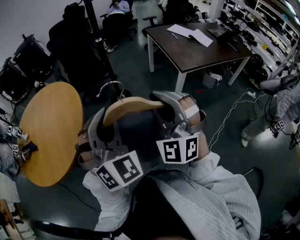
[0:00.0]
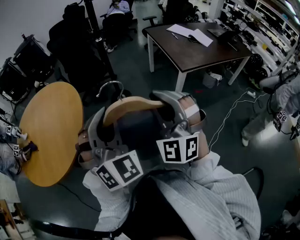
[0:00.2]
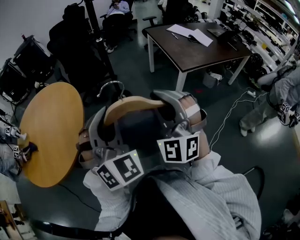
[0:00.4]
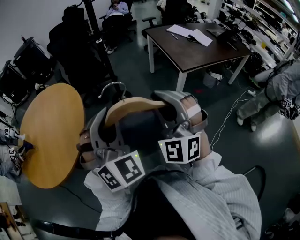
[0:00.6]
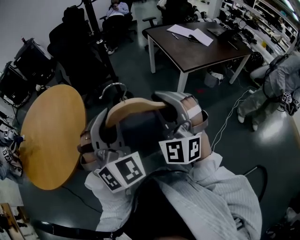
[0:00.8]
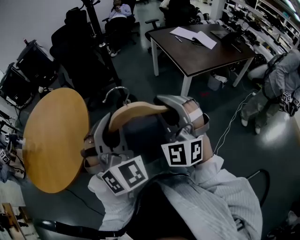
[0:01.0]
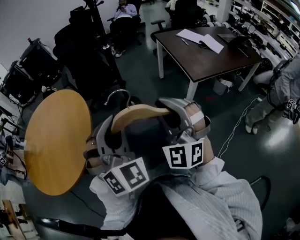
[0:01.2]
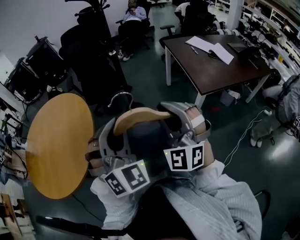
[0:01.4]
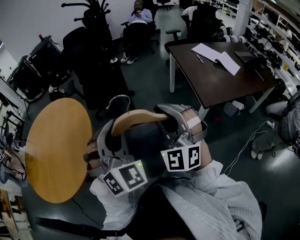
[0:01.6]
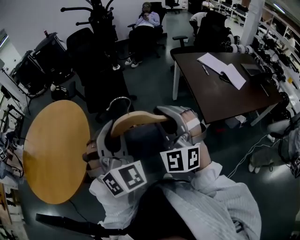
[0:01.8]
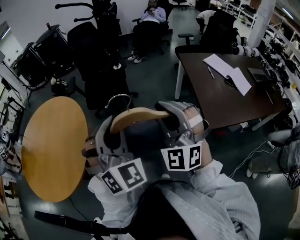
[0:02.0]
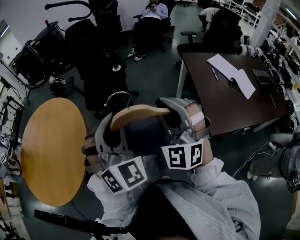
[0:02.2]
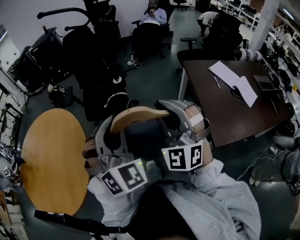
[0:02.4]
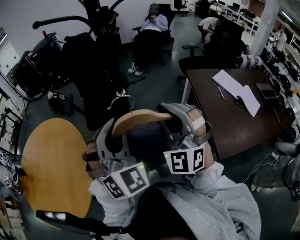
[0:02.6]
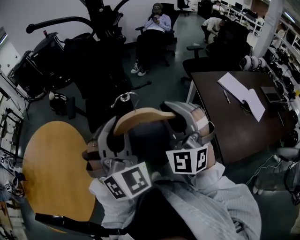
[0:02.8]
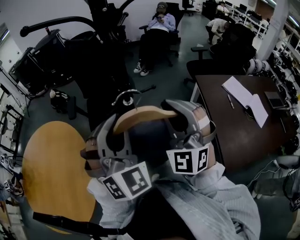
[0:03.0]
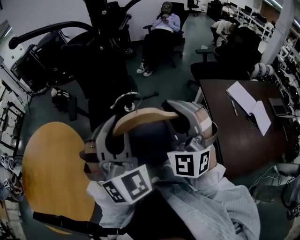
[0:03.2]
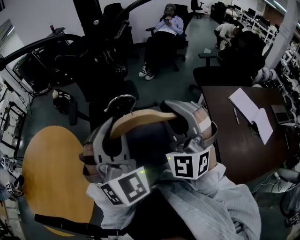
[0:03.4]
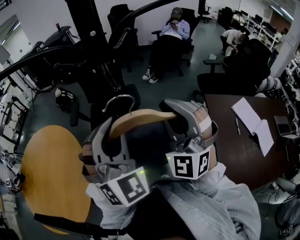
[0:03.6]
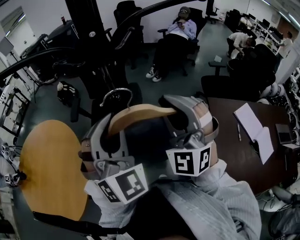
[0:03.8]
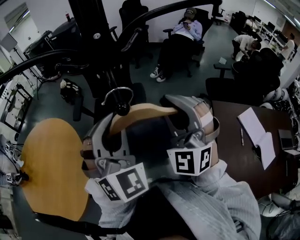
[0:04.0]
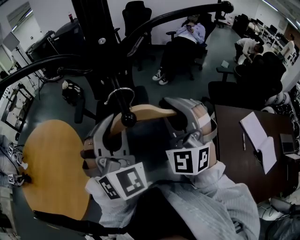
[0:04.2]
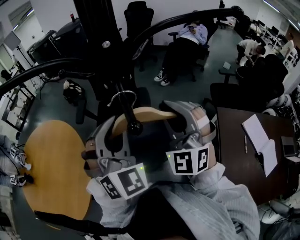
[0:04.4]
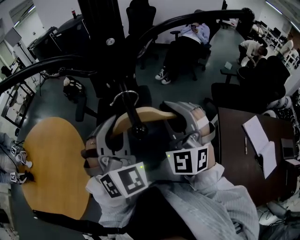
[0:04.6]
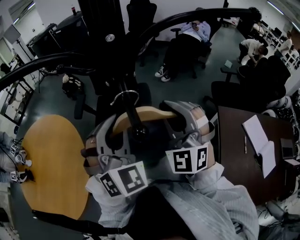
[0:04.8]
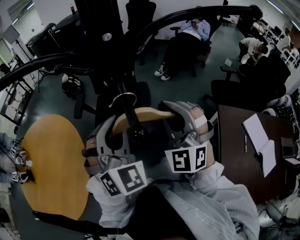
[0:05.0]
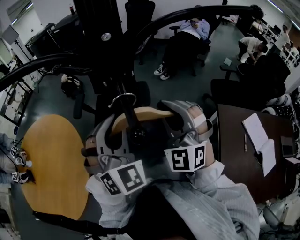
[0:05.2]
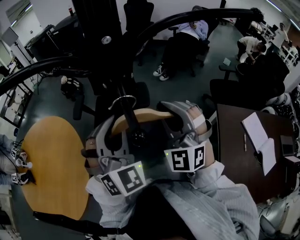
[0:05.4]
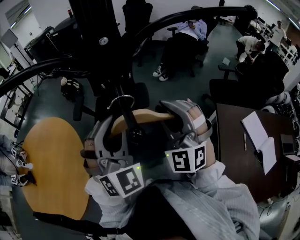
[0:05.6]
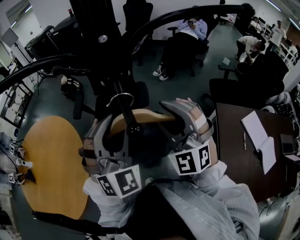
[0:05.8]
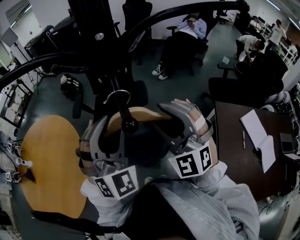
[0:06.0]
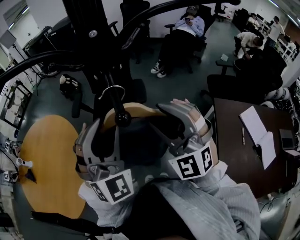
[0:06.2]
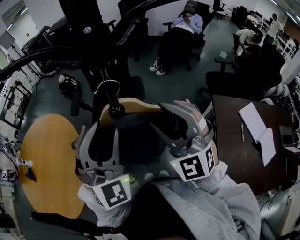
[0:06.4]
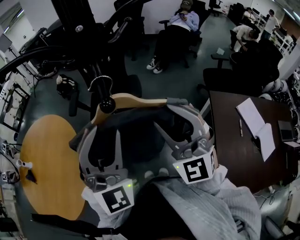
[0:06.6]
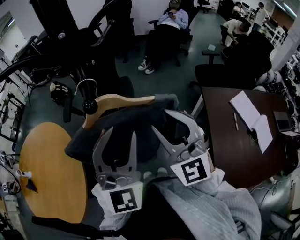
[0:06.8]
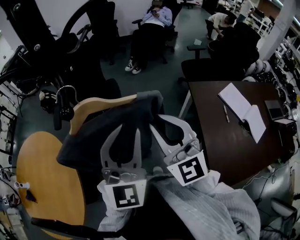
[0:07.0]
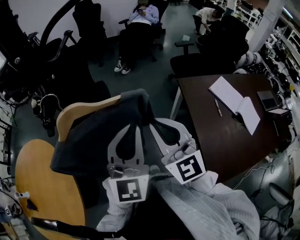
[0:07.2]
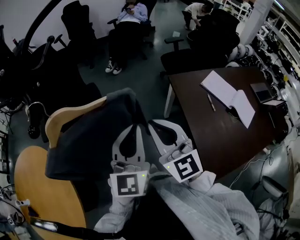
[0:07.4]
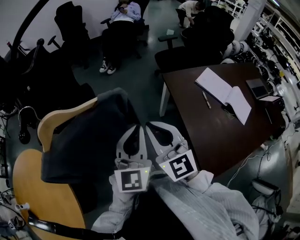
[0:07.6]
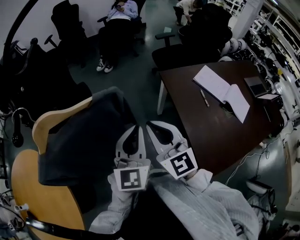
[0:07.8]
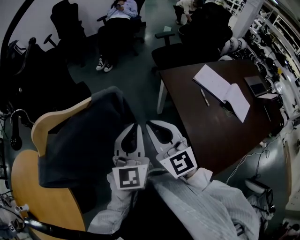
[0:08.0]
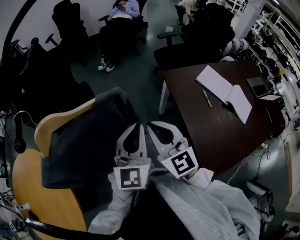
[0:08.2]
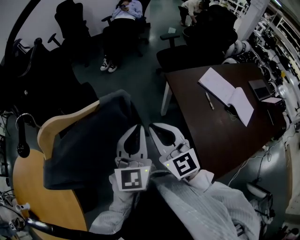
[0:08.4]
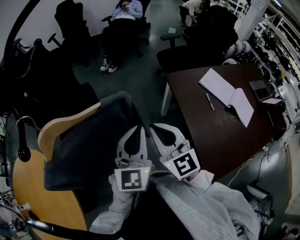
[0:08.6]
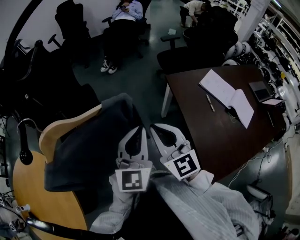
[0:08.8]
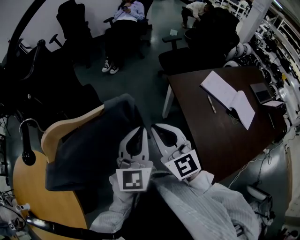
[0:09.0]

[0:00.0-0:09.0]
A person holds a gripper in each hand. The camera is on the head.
0:00.0 to 0:01.6: The two grippers go approximately 25 cm forward.
0:01.6 to 0:03.0: The two grippers travel together, forward, roughly 40 cm.
0:03.0 to 0:04.4: Both grippers move forward, some 20 cm.
0:04.4 to 0:06.0: The left gripper opens. The right gripper opens up.
0:06.0 to 0:07.6: The right gripper moves some 25 cm, rolls clockwise, seen from behind, by some 50 degrees, and closes, while the left gripper changes place by some 30 cm, twists roughly 50 degrees counterclockwise, seen from behind, and closes up.
0:07.6 to 0:09.0: There are only small adjustments of the grippers.

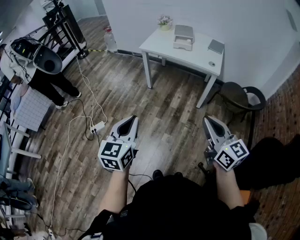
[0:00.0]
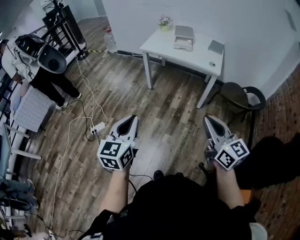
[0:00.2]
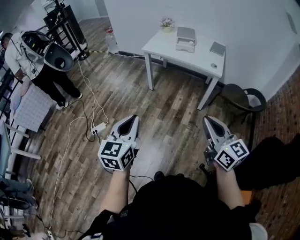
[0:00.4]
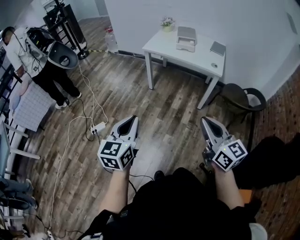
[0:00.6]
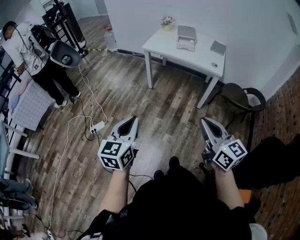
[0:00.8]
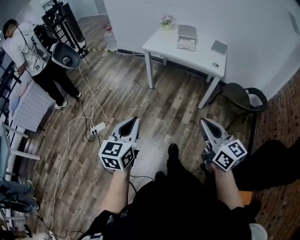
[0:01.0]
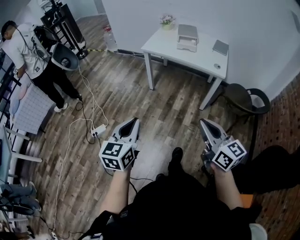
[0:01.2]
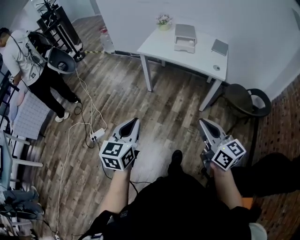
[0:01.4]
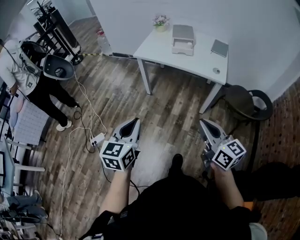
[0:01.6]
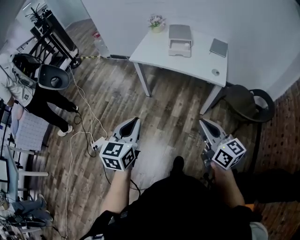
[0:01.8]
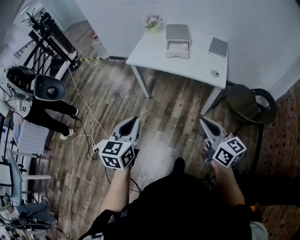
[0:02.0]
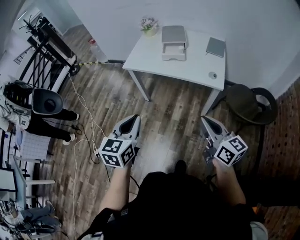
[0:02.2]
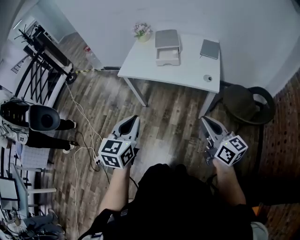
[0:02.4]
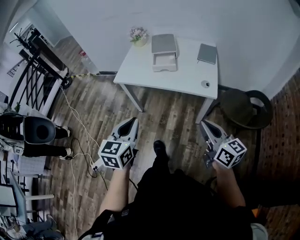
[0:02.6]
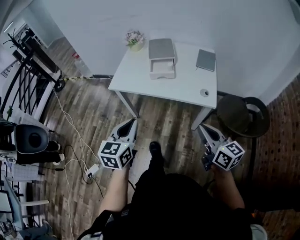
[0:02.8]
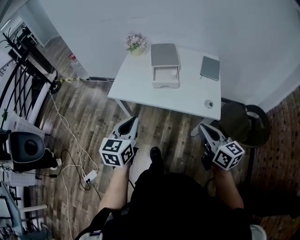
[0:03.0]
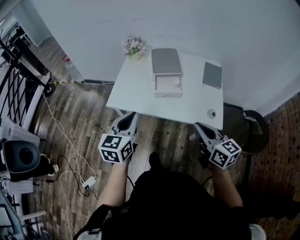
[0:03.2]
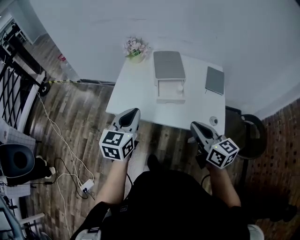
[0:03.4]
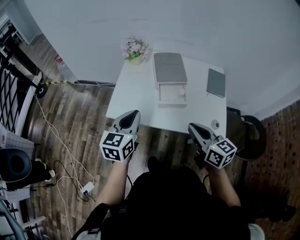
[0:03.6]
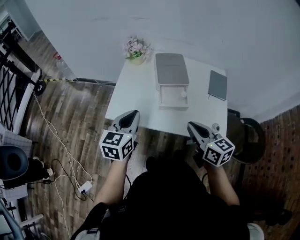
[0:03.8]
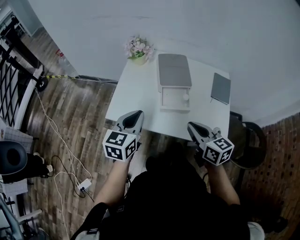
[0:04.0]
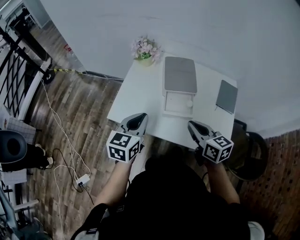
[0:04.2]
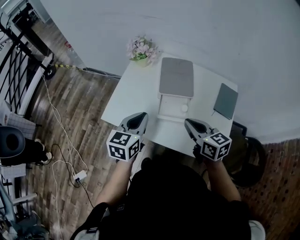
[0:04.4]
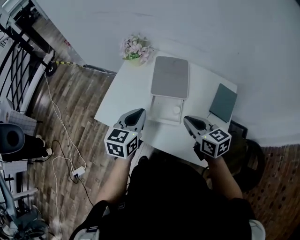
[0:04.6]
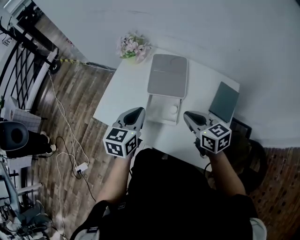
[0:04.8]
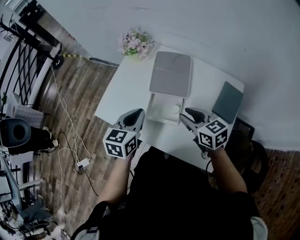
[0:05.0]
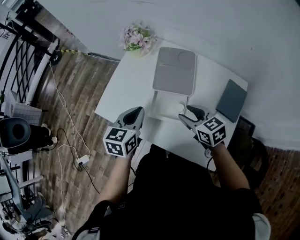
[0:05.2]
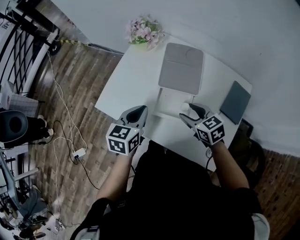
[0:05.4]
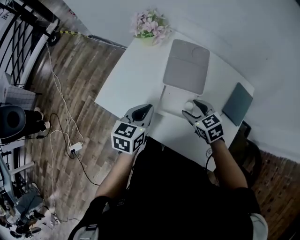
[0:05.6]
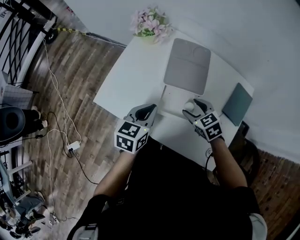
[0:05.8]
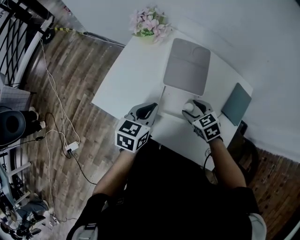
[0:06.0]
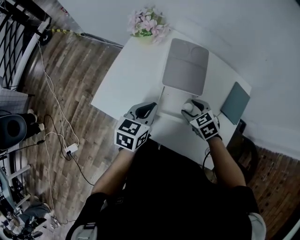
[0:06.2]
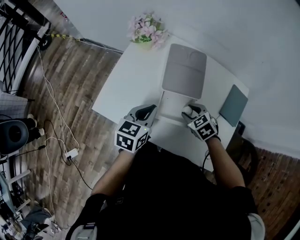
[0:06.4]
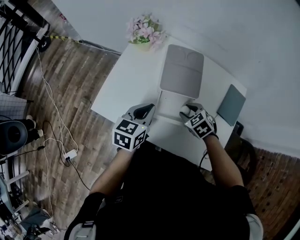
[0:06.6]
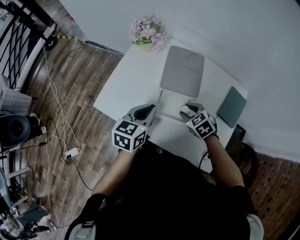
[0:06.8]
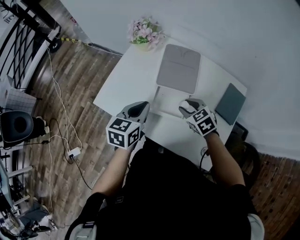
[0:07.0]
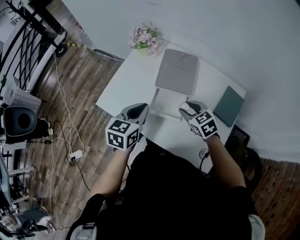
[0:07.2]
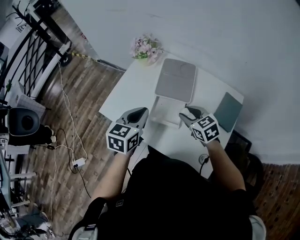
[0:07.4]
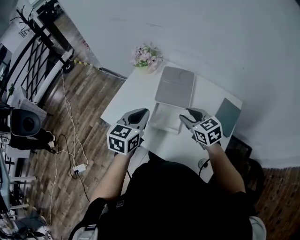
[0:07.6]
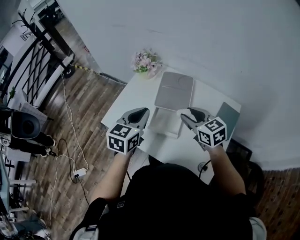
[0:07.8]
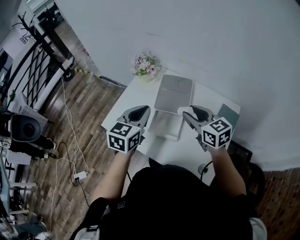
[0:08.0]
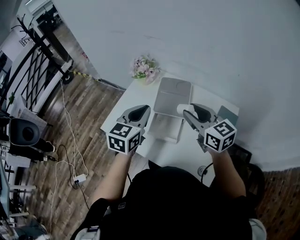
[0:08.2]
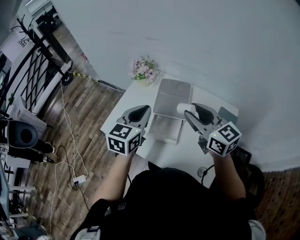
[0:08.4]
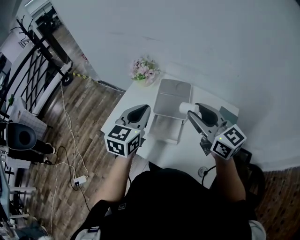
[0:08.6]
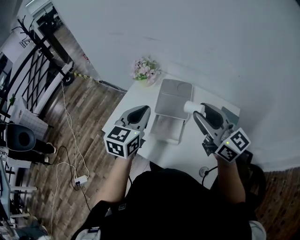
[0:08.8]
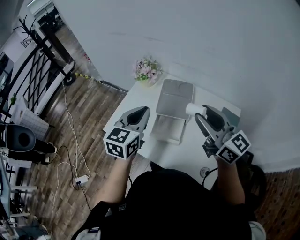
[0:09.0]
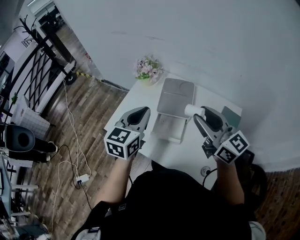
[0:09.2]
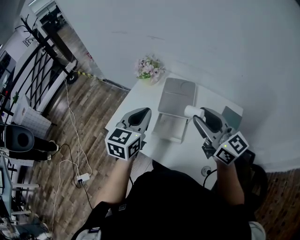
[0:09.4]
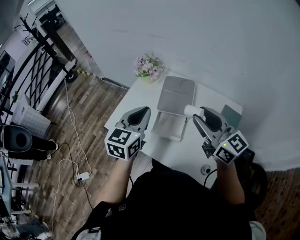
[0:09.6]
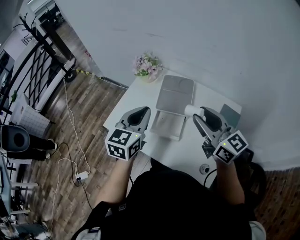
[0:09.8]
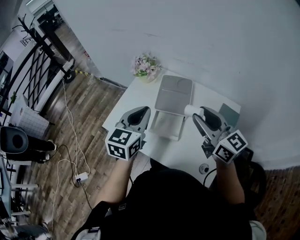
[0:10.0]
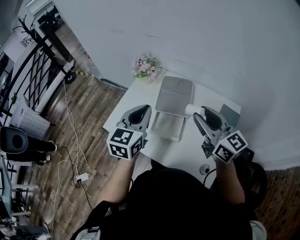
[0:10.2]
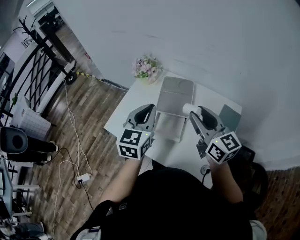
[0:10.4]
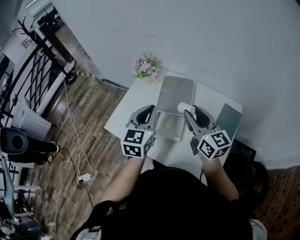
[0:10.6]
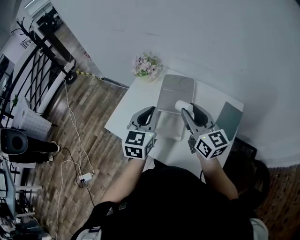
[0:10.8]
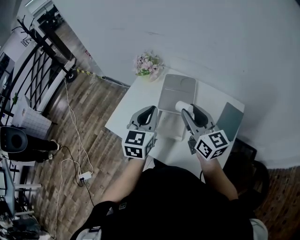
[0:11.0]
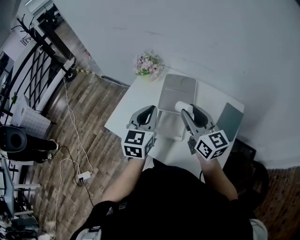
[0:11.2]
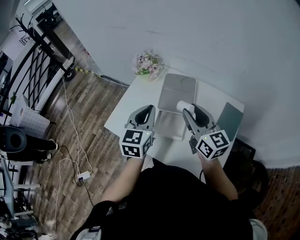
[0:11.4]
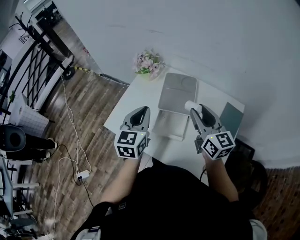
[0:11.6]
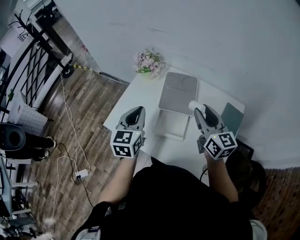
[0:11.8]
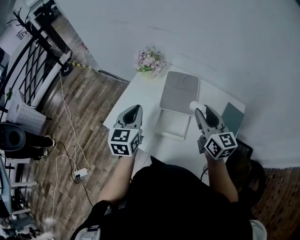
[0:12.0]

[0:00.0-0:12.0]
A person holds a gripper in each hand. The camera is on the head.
0:00.0 to 0:01.6: The grippers both shift forward by some 20 cm.
0:01.6 to 0:03.0: The grippers both shift forward by some 35 cm.
0:03.0 to 0:04.4: Both grippers travel together forward, approximately 30 cm. The right gripper rotates some 20 degrees.
0:04.4 to 0:06.0: The left gripper moves downward, forward and to the right, approximately 10 cm. The right gripper moves downward and forward, some 20 cm, rotates about 40 degrees, and opens.
0:06.0 to 0:07.6: Both grippers travel together upward, about 10 cm. The right gripper swivels about 20 degrees, and closes.
0:07.6 to 0:09.0: The right gripper travels upward by roughly 20 cm, and angles its fingers upward, by about 40 degrees, while the left gripper is displaced upward by some 10 cm.
0:09.0 to 0:10.4: The right gripper changes place by about 5 cm.
0:10.4 to 0:12.0: The right gripper is displaced downward by some 5 cm; the left gripper is displaced to the left and downward by roughly 10 cm.

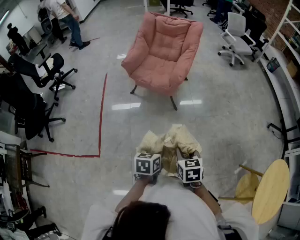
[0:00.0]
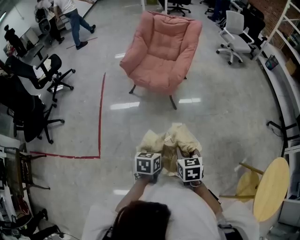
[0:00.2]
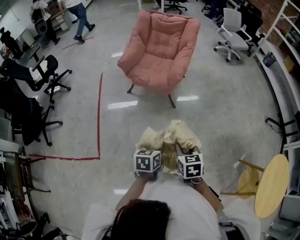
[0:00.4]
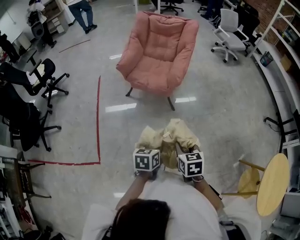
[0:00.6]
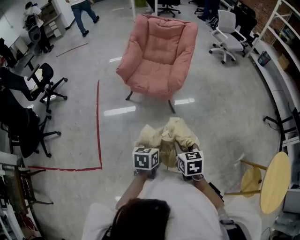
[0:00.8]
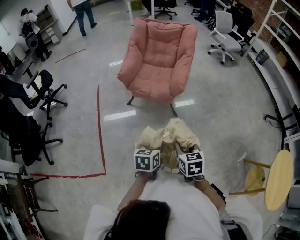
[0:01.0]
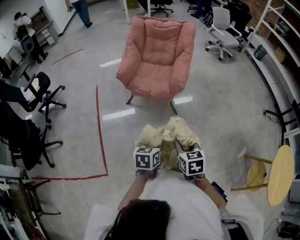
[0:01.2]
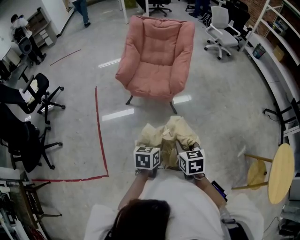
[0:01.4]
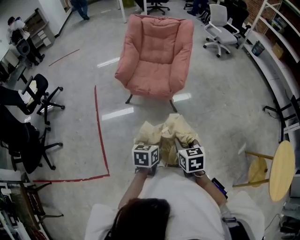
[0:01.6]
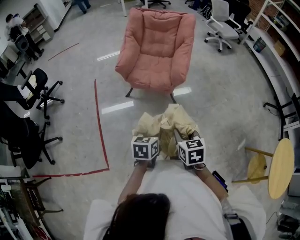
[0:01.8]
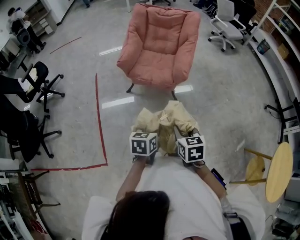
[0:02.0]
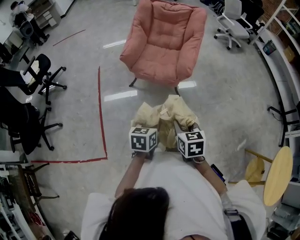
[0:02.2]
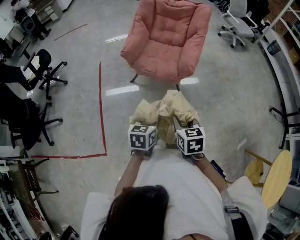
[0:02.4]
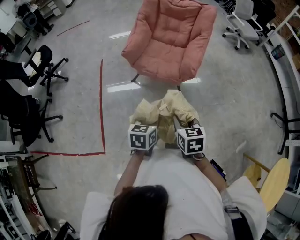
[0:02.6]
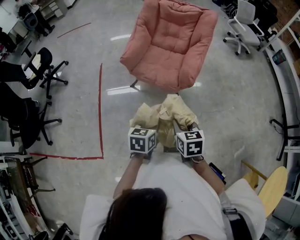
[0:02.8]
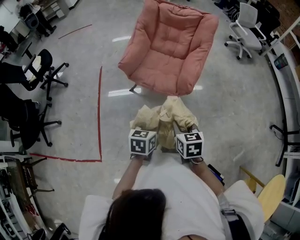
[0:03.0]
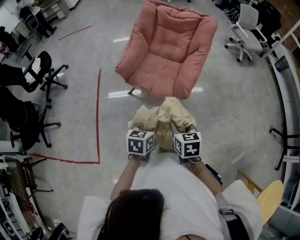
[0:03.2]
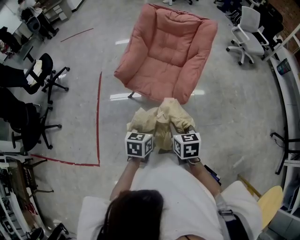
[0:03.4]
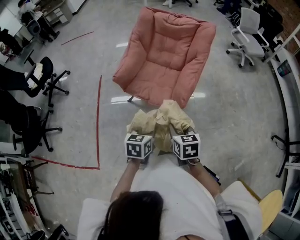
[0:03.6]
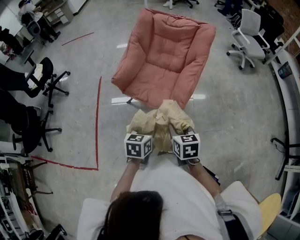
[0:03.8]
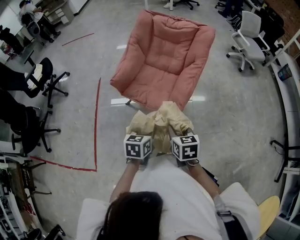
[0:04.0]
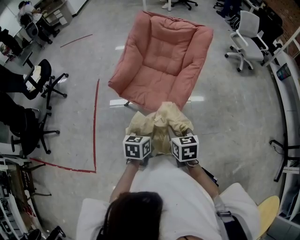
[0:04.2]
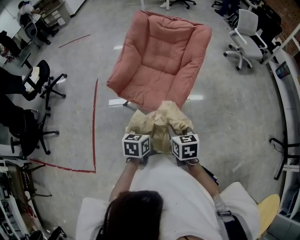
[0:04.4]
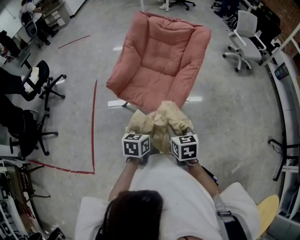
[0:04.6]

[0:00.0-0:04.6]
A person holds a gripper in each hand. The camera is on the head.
0:00.0 to 0:01.6: The grippers both shift to the left and forward by approximately 20 cm.
0:01.6 to 0:03.0: Both grippers travel together forward, some 20 cm.
0:03.0 to 0:04.6: Both grippers travel together forward and to the right, roughly 15 cm.
